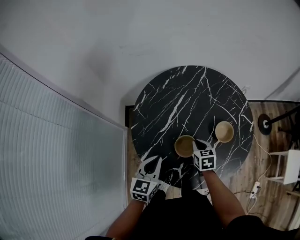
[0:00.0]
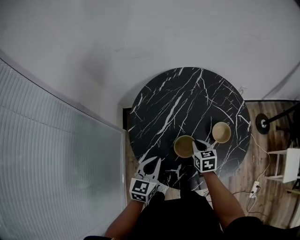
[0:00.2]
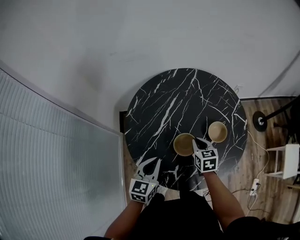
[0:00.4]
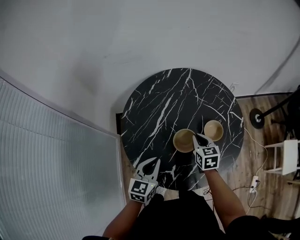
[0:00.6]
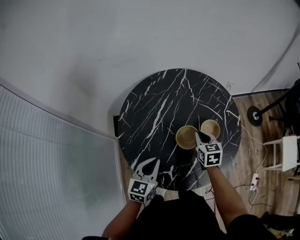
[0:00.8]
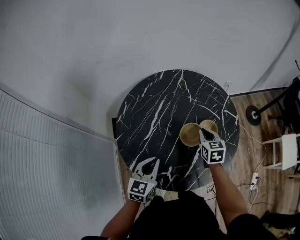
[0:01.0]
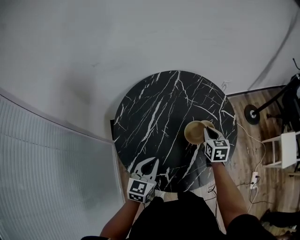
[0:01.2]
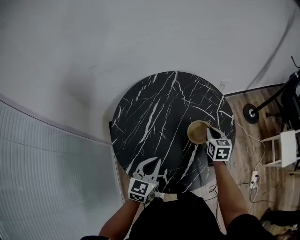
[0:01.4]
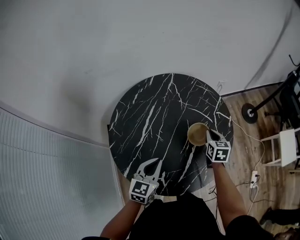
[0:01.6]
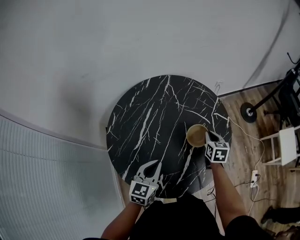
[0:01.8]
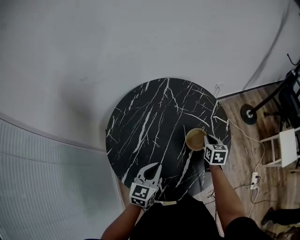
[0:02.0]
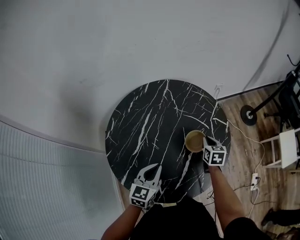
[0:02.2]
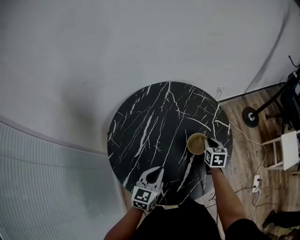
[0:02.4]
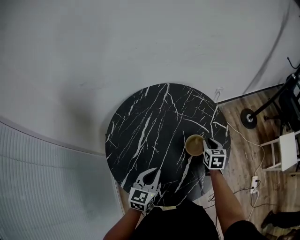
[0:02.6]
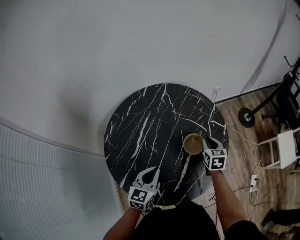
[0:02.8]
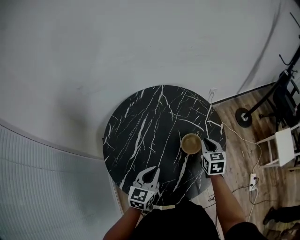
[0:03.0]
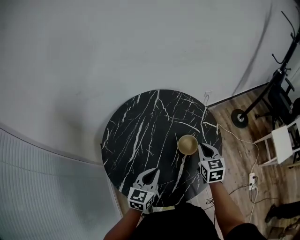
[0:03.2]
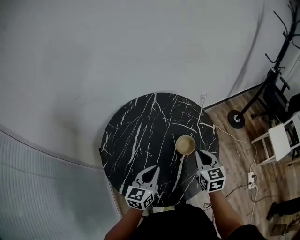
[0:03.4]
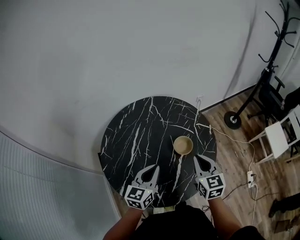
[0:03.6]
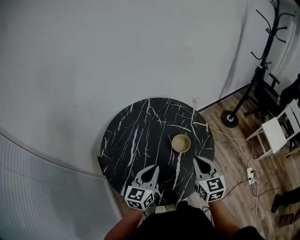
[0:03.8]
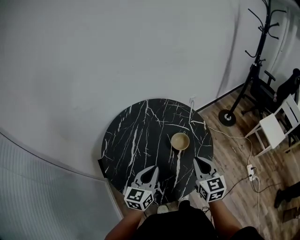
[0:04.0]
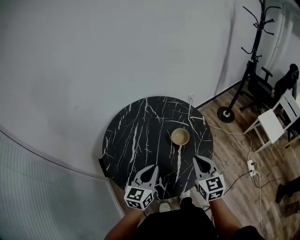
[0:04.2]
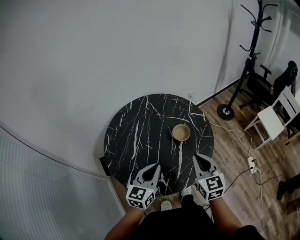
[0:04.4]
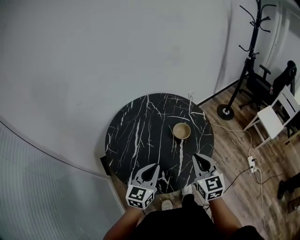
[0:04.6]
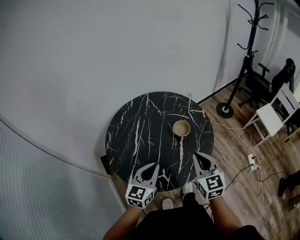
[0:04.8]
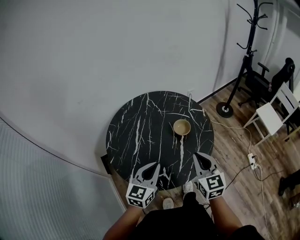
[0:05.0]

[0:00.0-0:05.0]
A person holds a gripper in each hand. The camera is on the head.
0.0 to 1.6 s: The right gripper is displaced to the right by about 20 cm, and swivels approximately 30 degrees, while the left gripper travels to the right and forward by about 10 cm.
1.6 to 3.4 s: The right gripper travels upward and backward by about 15 cm, while the left gripper shifts by some 5 cm.
3.4 to 5.0 s: The right gripper heads backward and upward, covering about 20 cm, while the left gripper travels backward by approximately 10 cm.

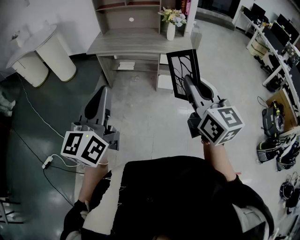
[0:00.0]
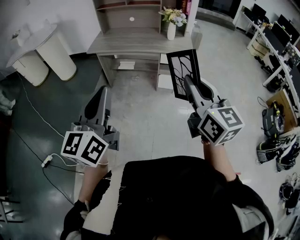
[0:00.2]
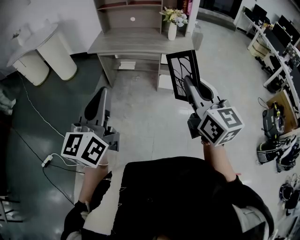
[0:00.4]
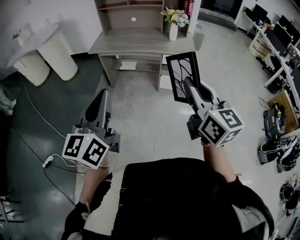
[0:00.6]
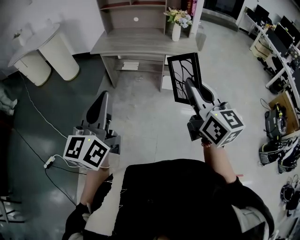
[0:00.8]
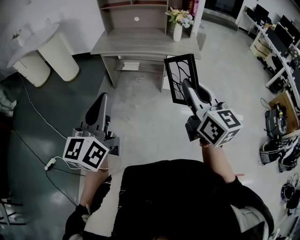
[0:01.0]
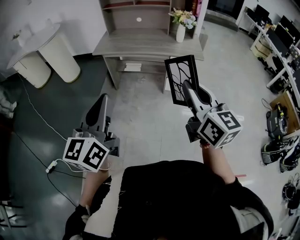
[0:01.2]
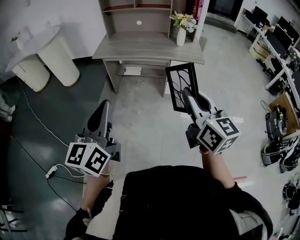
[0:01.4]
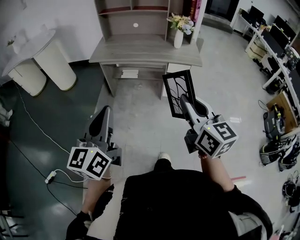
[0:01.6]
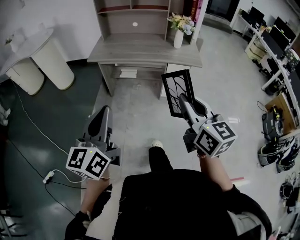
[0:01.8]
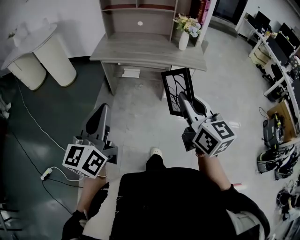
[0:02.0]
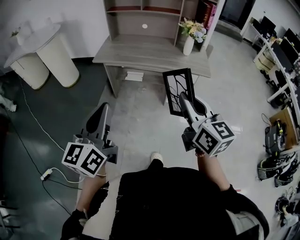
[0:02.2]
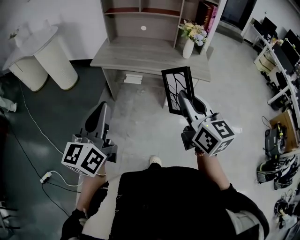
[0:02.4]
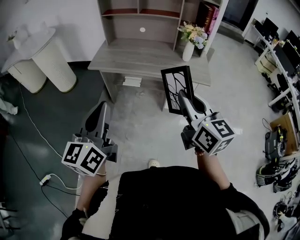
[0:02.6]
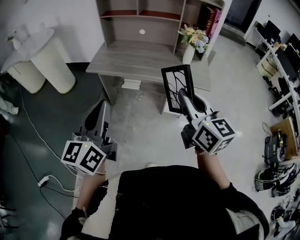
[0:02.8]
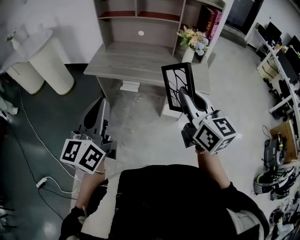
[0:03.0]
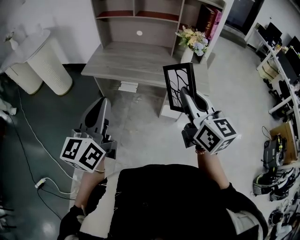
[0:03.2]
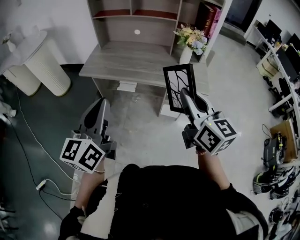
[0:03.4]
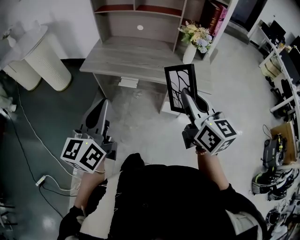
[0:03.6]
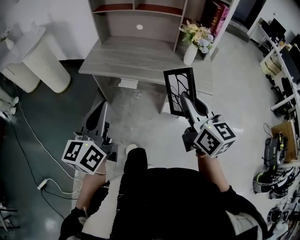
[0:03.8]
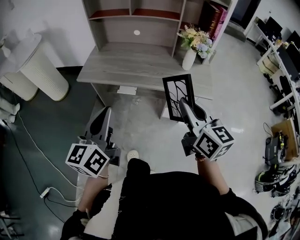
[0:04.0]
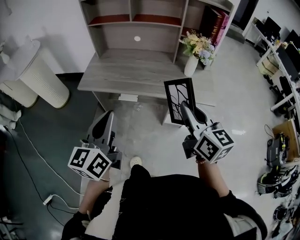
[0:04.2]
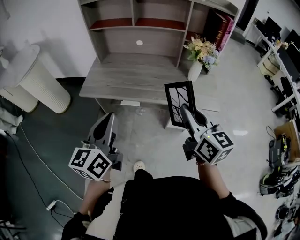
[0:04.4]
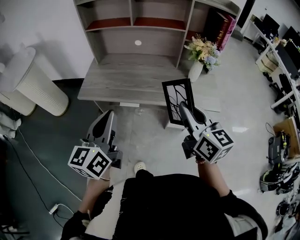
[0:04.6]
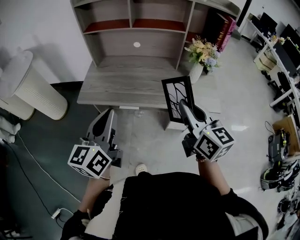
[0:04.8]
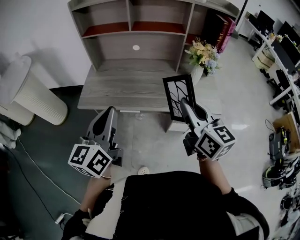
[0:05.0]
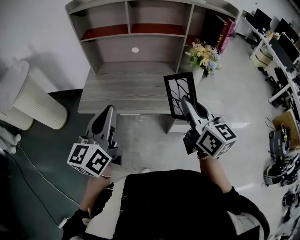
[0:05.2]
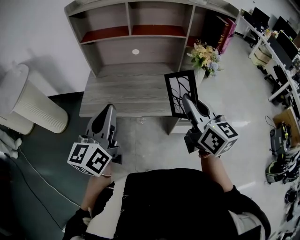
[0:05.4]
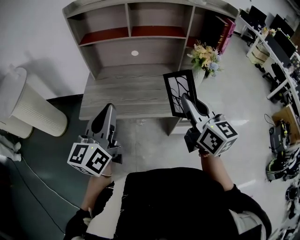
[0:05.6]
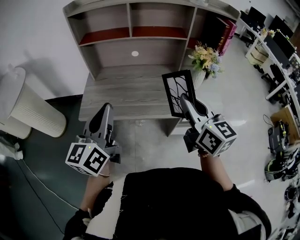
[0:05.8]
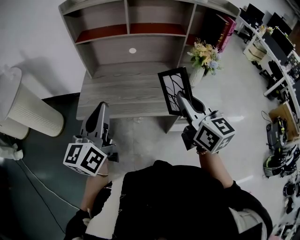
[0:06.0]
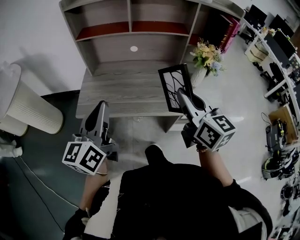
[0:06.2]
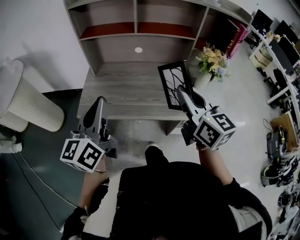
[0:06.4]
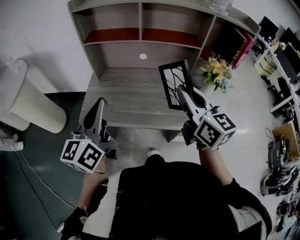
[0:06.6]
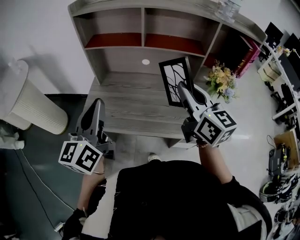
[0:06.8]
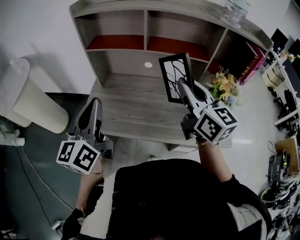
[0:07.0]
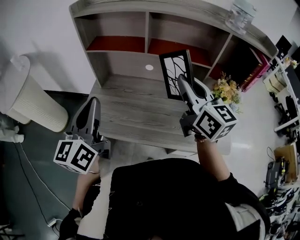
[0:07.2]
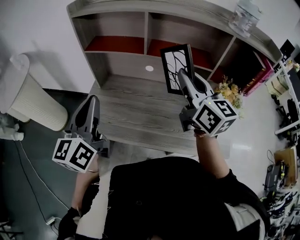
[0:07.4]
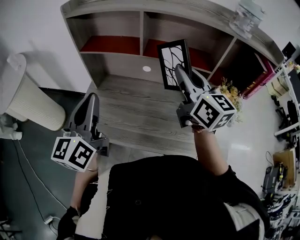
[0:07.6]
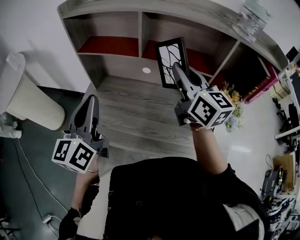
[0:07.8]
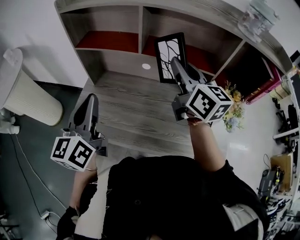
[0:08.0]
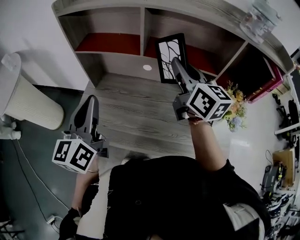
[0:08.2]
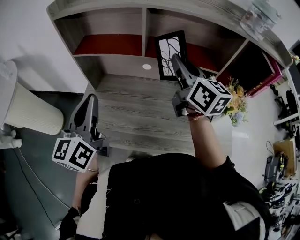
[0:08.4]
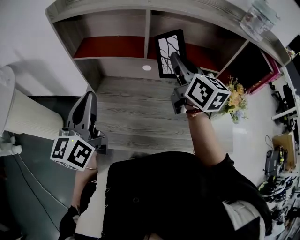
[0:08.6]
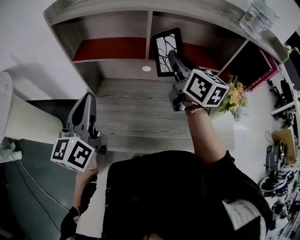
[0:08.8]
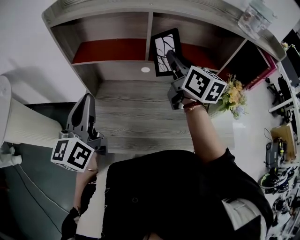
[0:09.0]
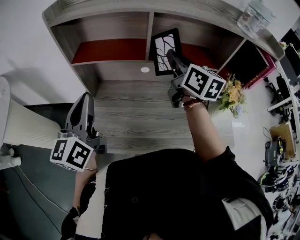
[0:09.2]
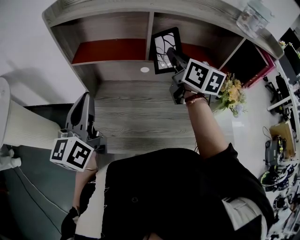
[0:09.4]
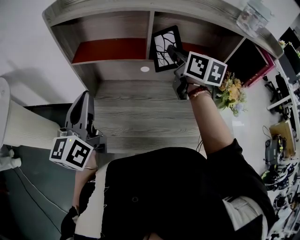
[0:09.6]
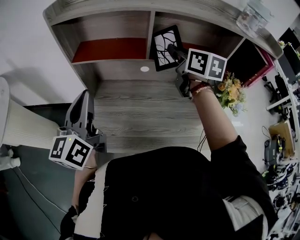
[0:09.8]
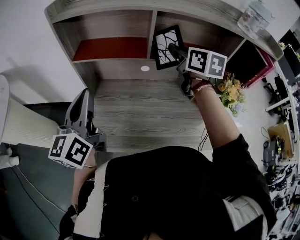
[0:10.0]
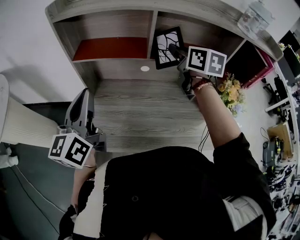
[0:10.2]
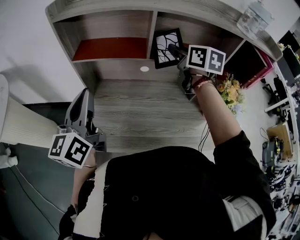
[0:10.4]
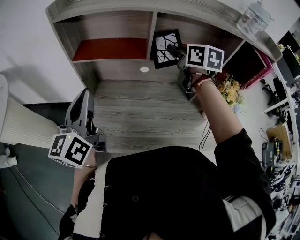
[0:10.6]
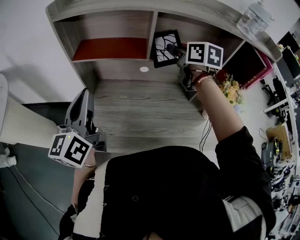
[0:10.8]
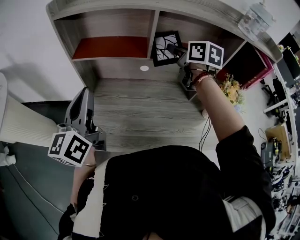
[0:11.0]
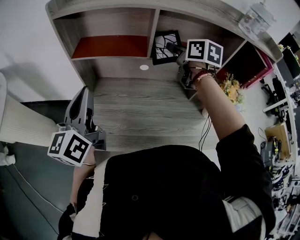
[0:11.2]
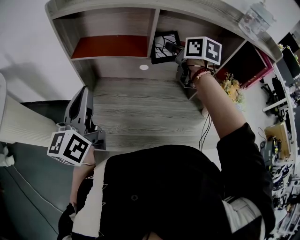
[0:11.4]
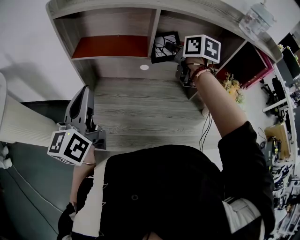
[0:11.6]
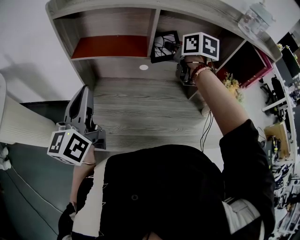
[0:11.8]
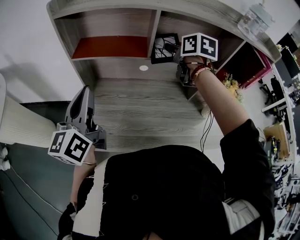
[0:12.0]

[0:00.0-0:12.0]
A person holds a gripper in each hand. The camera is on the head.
0.0 to 1.6 s: Both grippers travel together to the left, forward and downward, some 10 cm.
1.6 to 3.0 s: Both grippers move forward, approximately 25 cm.
3.0 to 4.4 s: Both grippers travel together forward, roughly 15 cm.
4.4 to 6.0 s: The two grippers go approximately 15 cm forward and to the left.
6.0 to 7.6 s: The right gripper is displaced forward by approximately 25 cm. Meanwhile the left gripper moves forward, roughly 15 cm.
7.6 to 9.0 s: The left gripper is displaced forward and to the left by roughly 10 cm, while the right gripper heads forward, covering some 10 cm.
9.0 to 10.4 s: The right gripper shifts by approximately 5 cm, and opens its fingers.
10.4 to 12.0 s: There are only small adjustments of the grippers.

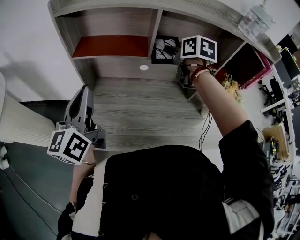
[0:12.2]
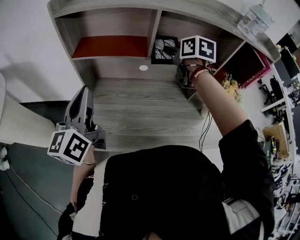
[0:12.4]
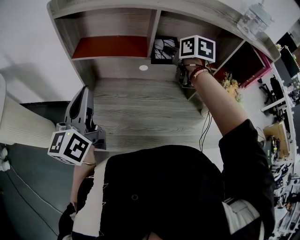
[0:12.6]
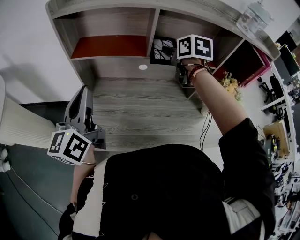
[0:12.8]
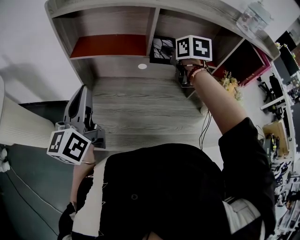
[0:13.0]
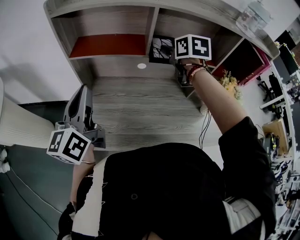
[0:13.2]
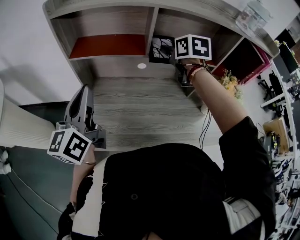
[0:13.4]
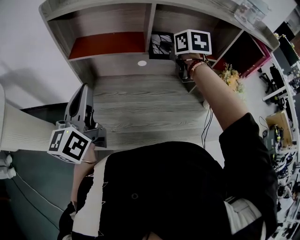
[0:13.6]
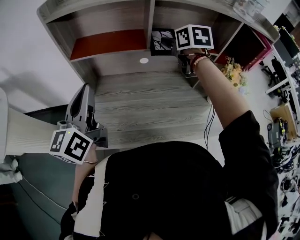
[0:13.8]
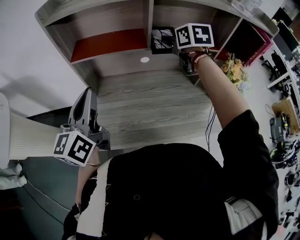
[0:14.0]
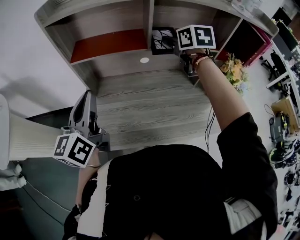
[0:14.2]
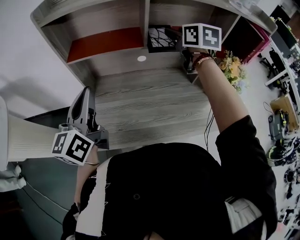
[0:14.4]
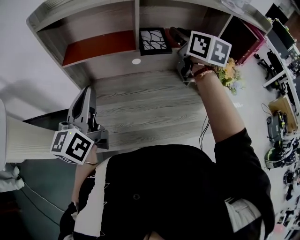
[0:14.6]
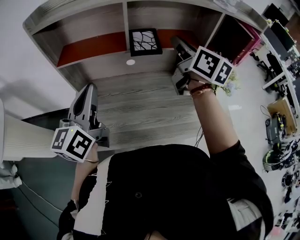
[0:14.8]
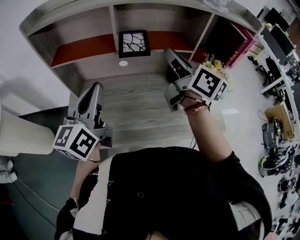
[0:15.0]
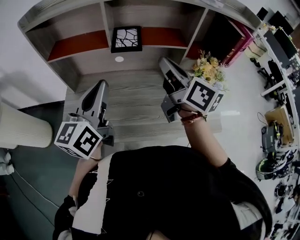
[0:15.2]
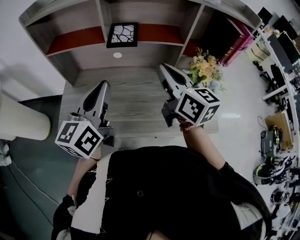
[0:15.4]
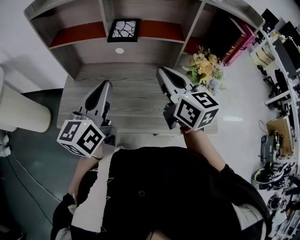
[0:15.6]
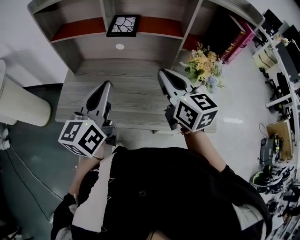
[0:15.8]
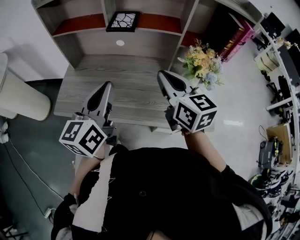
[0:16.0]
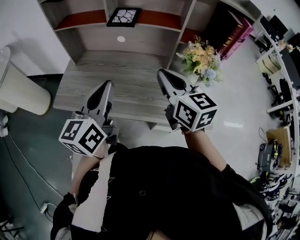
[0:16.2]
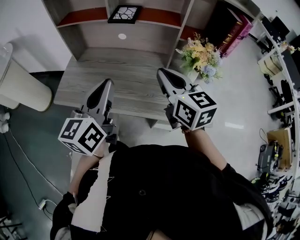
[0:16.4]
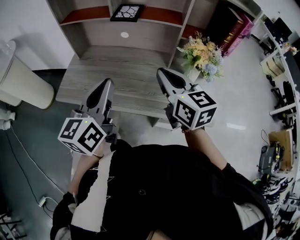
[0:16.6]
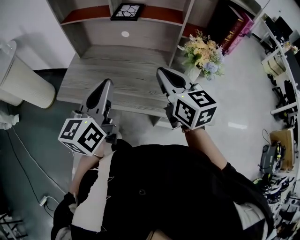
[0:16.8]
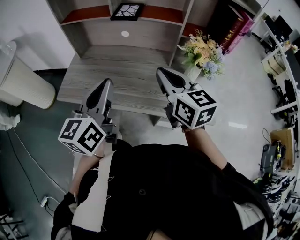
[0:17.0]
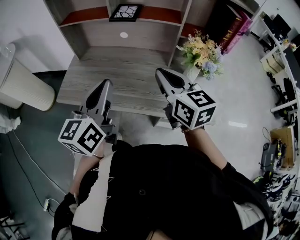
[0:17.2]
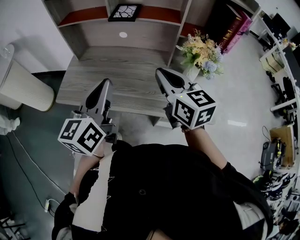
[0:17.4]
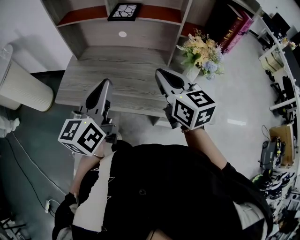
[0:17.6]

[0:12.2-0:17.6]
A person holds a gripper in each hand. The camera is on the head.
12.2 to 13.6 s: The grippers stay close to where they were, moving slightly.
13.6 to 15.0 s: The right gripper shifts approximately 15 cm backward, upward and to the right, tilts its fingers approximately 40 degrees upward, and closes. Meanwhile the left gripper is displaced to the right by roughly 15 cm.
15.0 to 16.2 s: The left gripper heads backward and to the right, covering about 20 cm. The right gripper is displaced backward and downward by about 15 cm, and turns by some 30 degrees.
16.2 to 17.6 s: The grippers stay close to where they were, moving slightly.

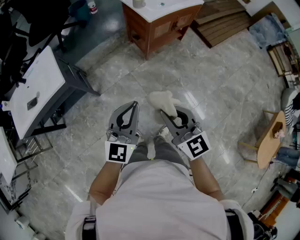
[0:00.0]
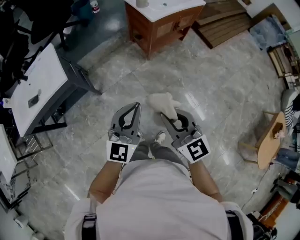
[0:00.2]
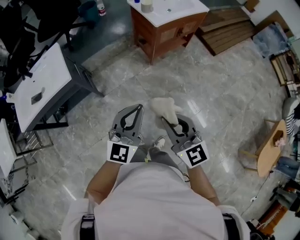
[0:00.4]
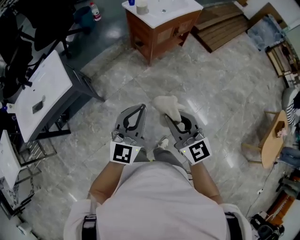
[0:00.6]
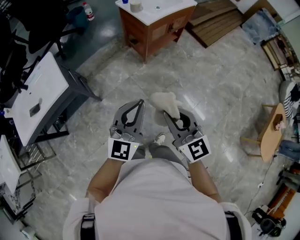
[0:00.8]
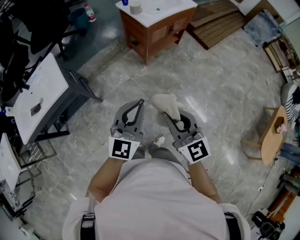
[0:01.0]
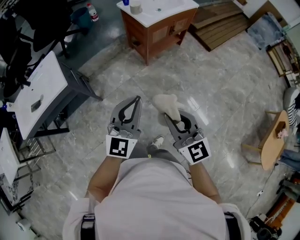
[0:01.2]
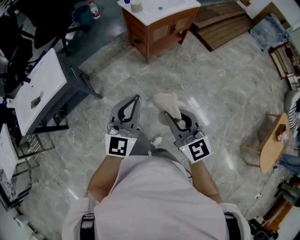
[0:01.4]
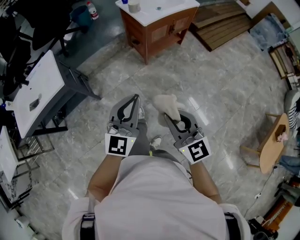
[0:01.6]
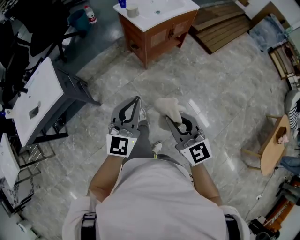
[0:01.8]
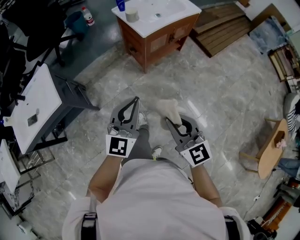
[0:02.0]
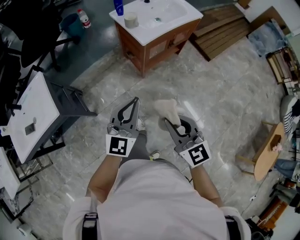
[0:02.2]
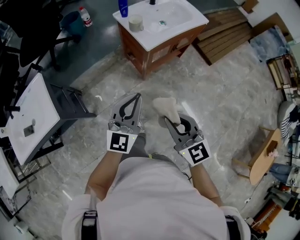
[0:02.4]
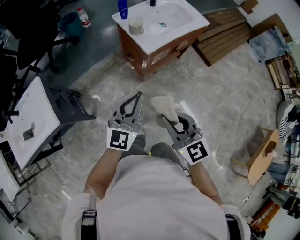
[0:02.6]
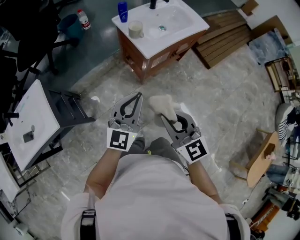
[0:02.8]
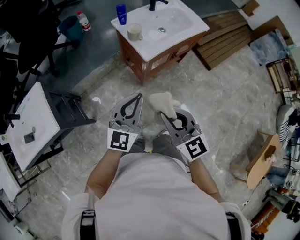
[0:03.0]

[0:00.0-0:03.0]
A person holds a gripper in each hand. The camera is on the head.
0.0 to 1.6 s: The two grippers go roughly 5 cm to the right.
1.6 to 3.0 s: Both grippers move forward, roughly 40 cm.
